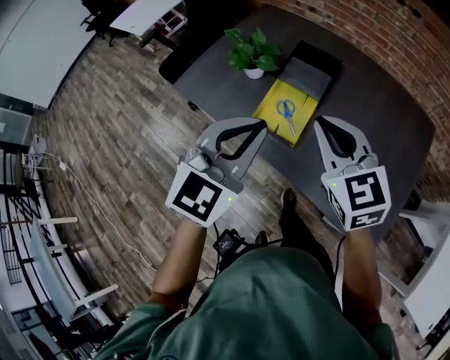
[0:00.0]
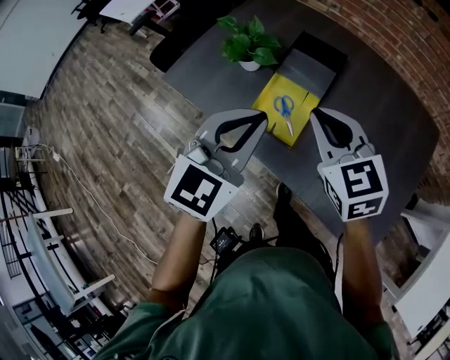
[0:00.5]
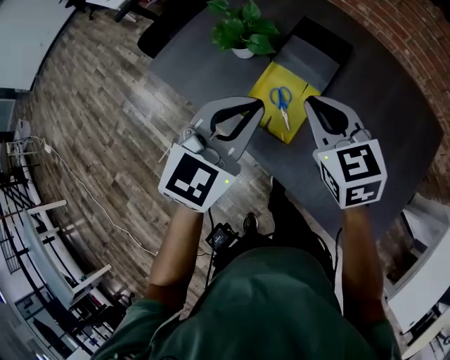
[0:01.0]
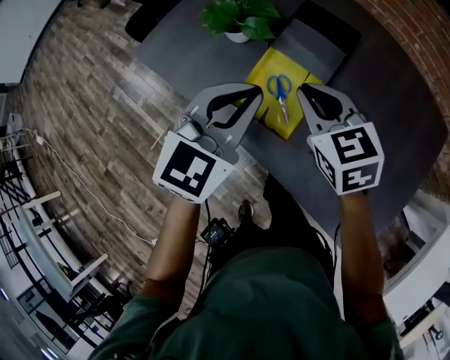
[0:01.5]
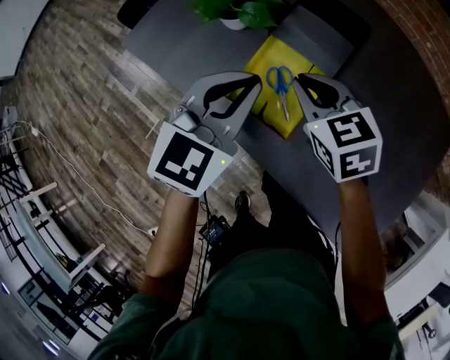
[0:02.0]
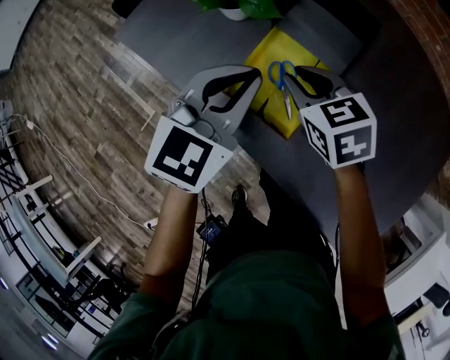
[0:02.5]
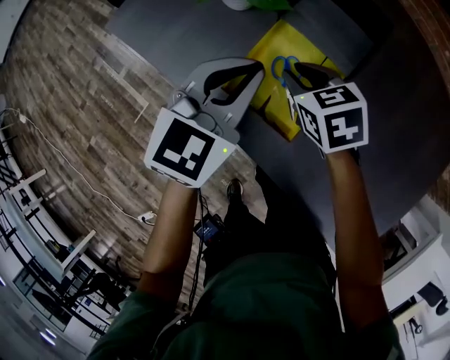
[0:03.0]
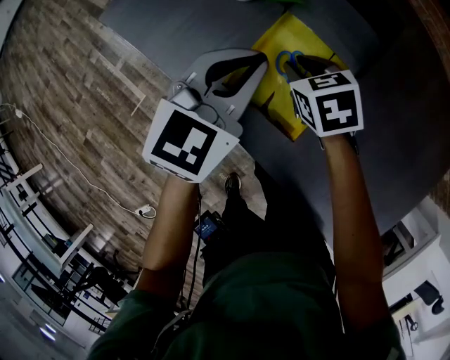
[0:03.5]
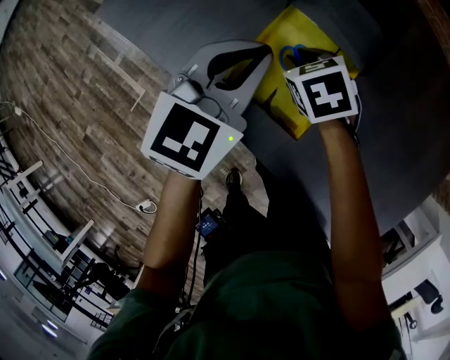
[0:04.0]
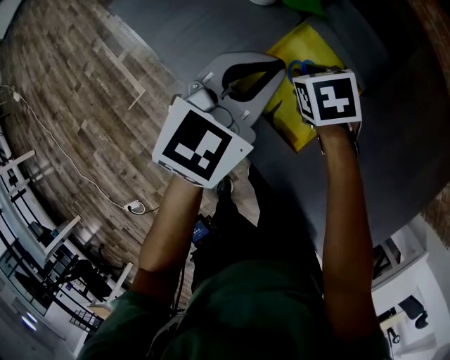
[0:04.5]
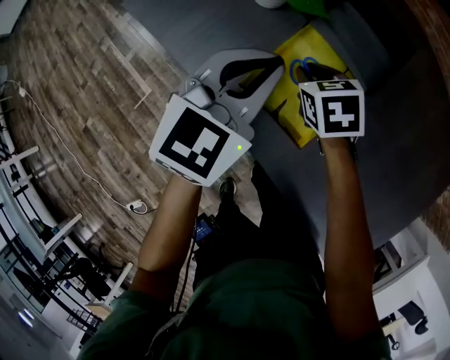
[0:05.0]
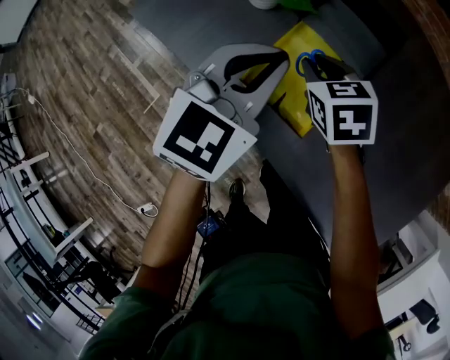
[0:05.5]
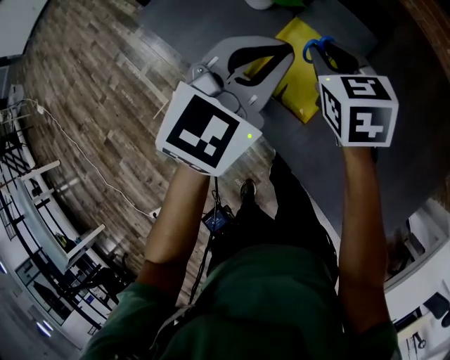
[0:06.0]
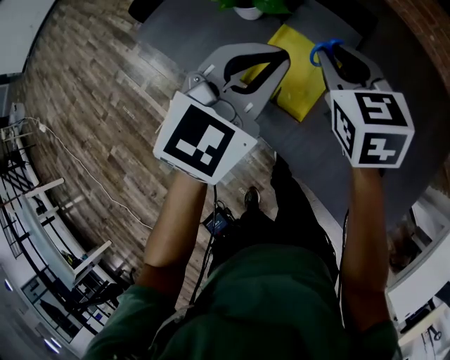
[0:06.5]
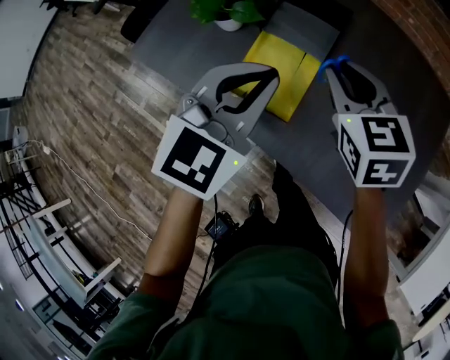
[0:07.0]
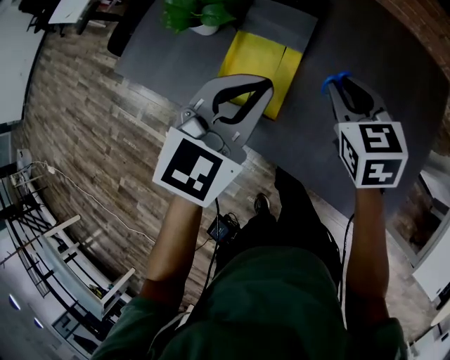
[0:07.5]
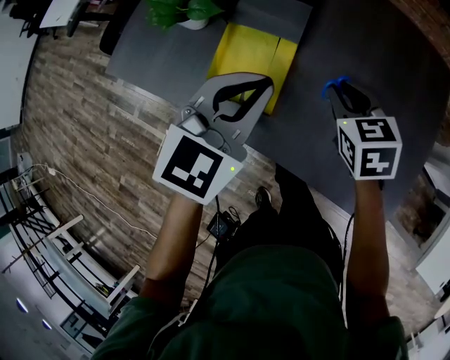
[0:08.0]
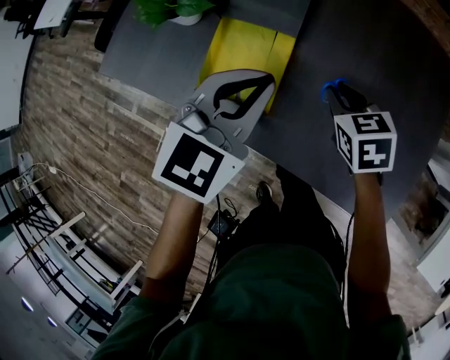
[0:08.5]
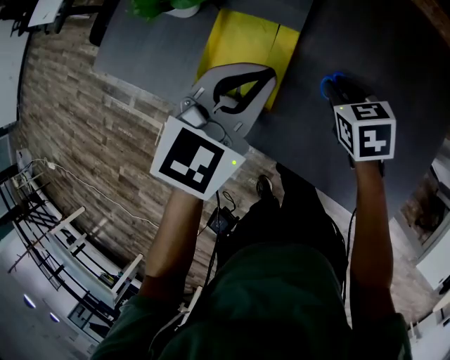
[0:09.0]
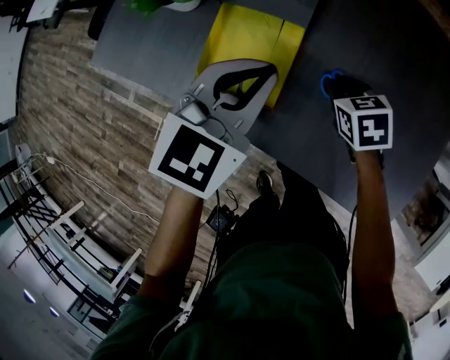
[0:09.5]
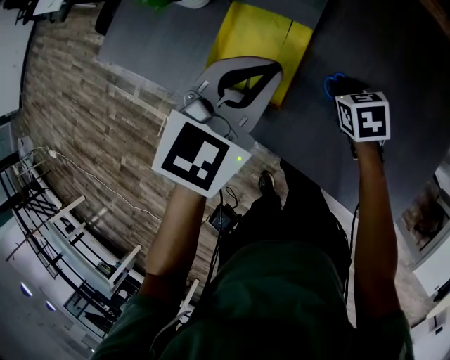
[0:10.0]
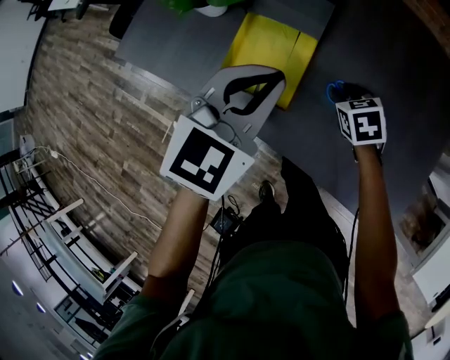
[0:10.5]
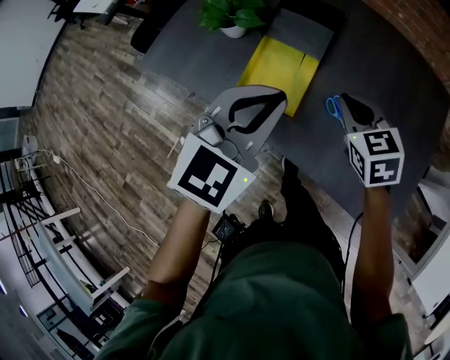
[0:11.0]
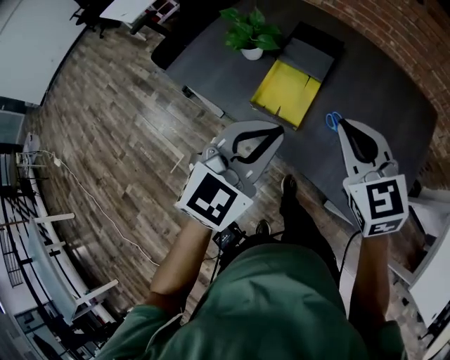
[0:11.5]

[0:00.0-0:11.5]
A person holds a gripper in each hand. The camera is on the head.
0:00.0 to 0:02.0: Both grippers move downward and forward, some 25 cm. The right gripper rotates roughly 20 degrees.
0:02.0 to 0:04.0: The right gripper shifts approximately 15 cm downward, and swivels approximately 20 degrees, while the left gripper is displaced downward by about 10 cm.
0:04.0 to 0:06.0: The right gripper travels upward by approximately 15 cm, and rotates some 20 degrees. The left gripper goes some 10 cm upward.
0:06.0 to 0:07.5: The left gripper goes approximately 10 cm to the right, while the right gripper heads to the right, covering about 20 cm.
0:07.5 to 0:09.5: The left gripper heads downward, covering approximately 10 cm, while the right gripper moves downward, roughly 20 cm, and rotates approximately 20 degrees.
0:09.5 to 0:11.5: The left gripper heads backward and upward, covering about 25 cm; the right gripper travels upward and backward by some 35 cm, and points its fingers some 30 degrees further upward.

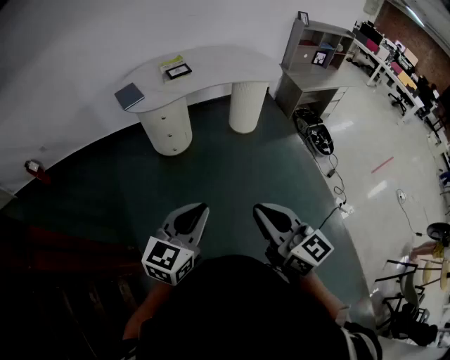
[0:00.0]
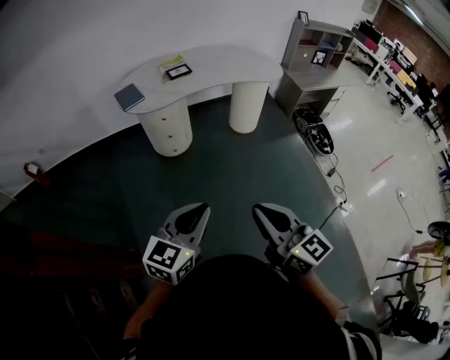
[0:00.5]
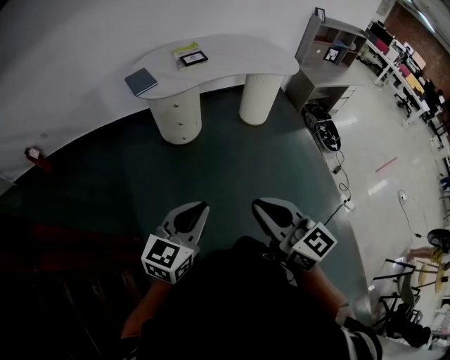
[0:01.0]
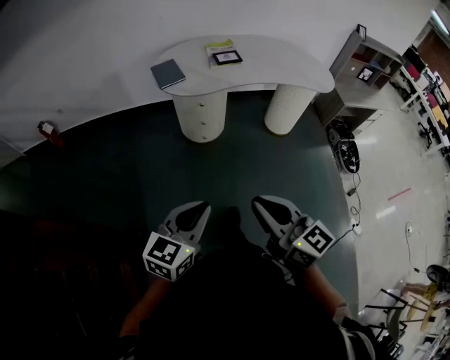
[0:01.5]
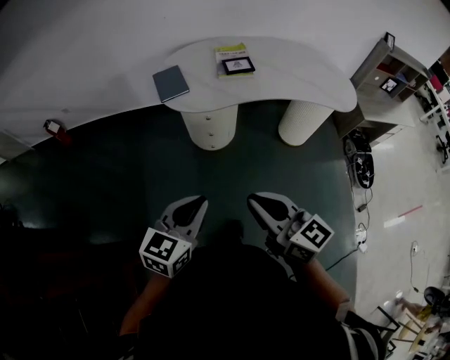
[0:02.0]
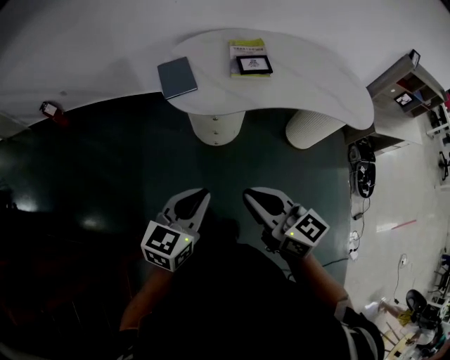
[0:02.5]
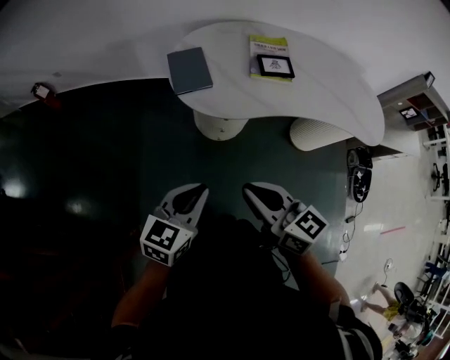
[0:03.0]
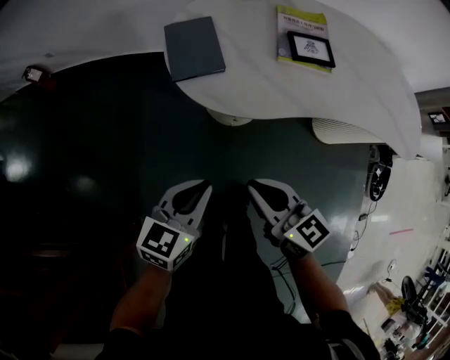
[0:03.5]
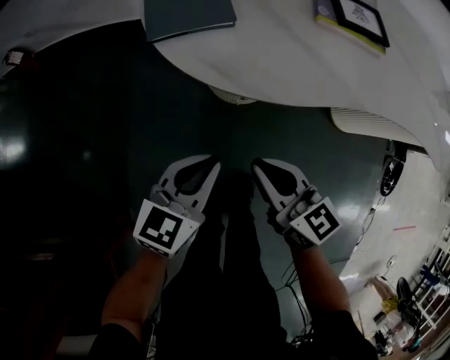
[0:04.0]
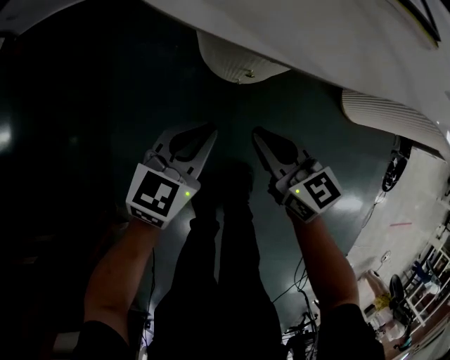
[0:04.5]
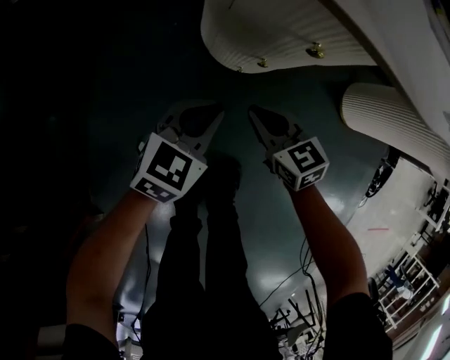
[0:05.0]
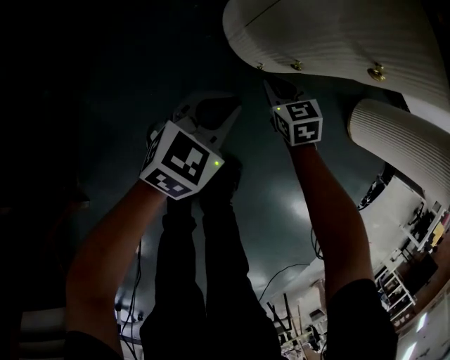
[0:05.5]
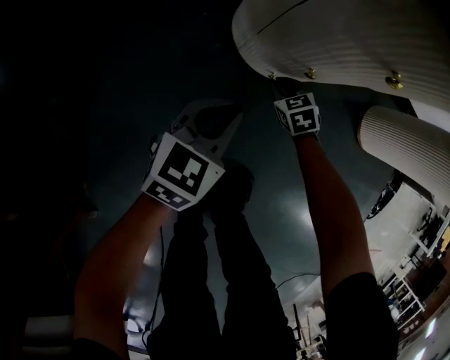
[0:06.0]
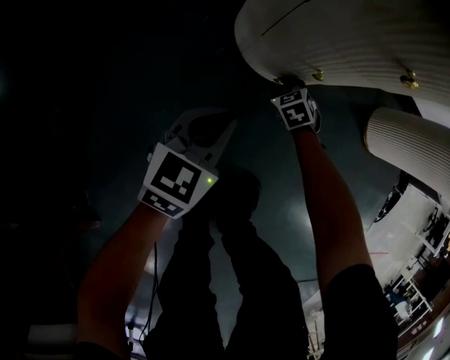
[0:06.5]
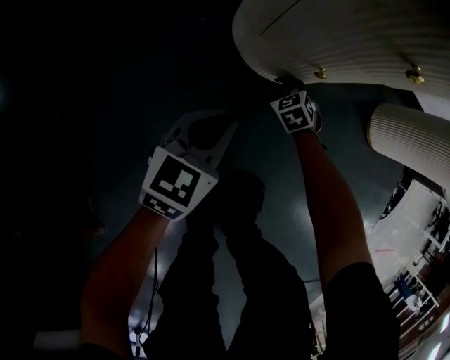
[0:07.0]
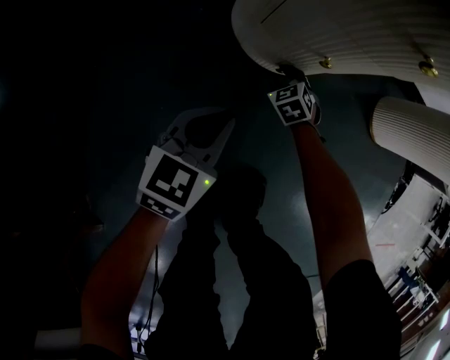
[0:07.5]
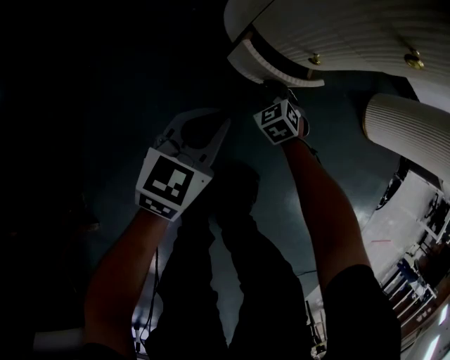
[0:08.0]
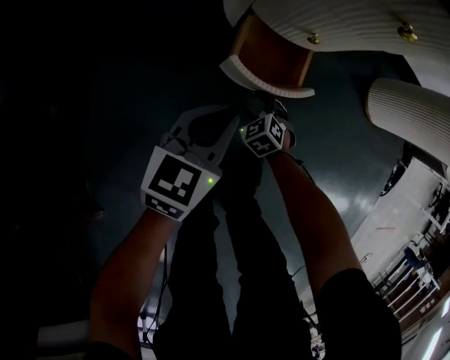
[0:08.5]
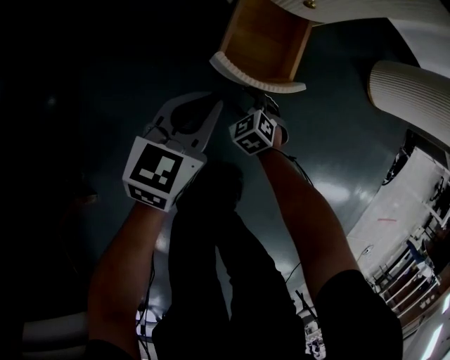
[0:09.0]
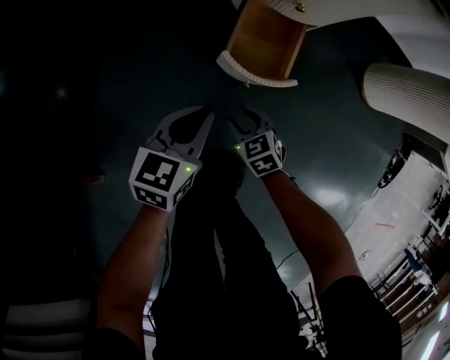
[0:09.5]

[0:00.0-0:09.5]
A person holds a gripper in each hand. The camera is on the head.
0:00.0 to 0:02.0: The left gripper shifts about 30 cm forward and to the left. The right gripper moves forward, approximately 30 cm, and changes its angle by approximately 20 degrees.
0:02.0 to 0:04.0: The two grippers go about 50 cm downward and forward.
0:04.0 to 0:05.5: The two grippers go about 40 cm downward. The right gripper angles its fingers downward, by some 30 degrees.
0:05.5 to 0:07.5: The left gripper travels downward by some 5 cm; the right gripper moves downward, some 15 cm, changes its angle by roughly 20 degrees, and opens up.
0:07.5 to 0:09.5: The right gripper shifts roughly 35 cm backward and upward, and turns by approximately 20 degrees; the left gripper heads backward and upward, covering some 20 cm.

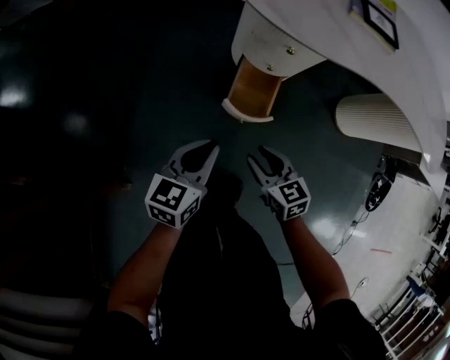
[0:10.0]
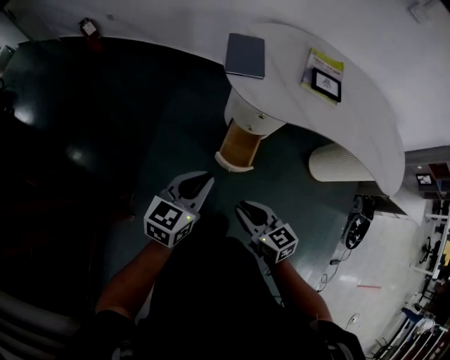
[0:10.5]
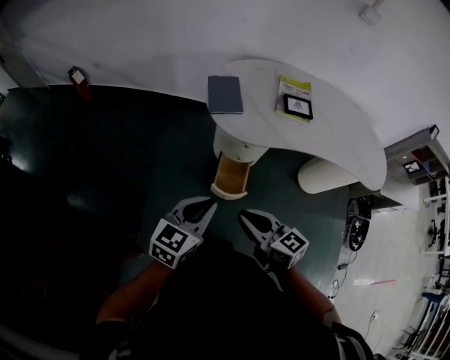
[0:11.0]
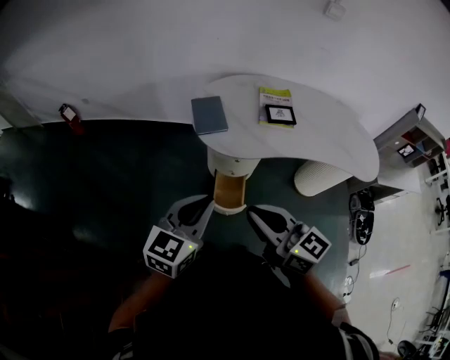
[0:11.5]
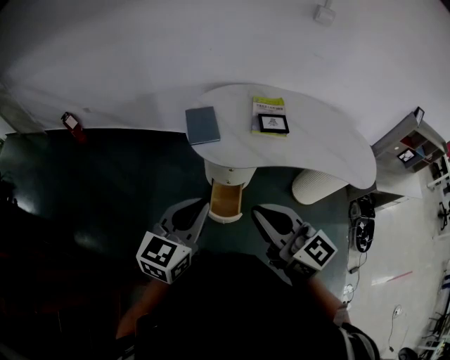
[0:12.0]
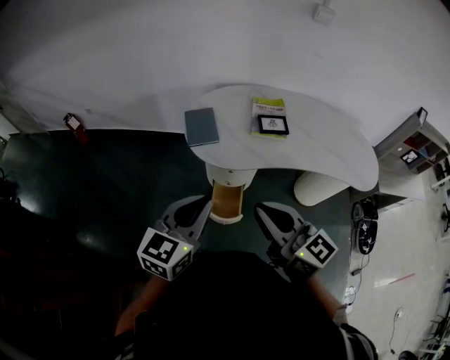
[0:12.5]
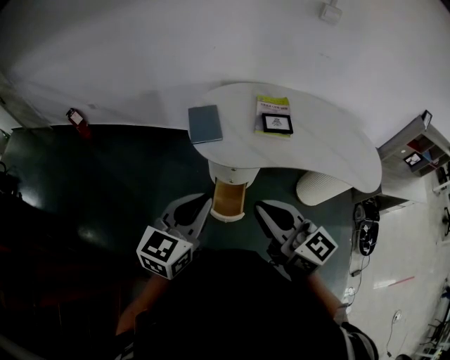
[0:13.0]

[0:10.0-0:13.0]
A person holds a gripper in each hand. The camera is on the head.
0:10.0 to 0:11.5: Both grippers move upward, roughly 50 cm. The left gripper changes its angle by about 20 degrees, while the right gripper points its fingers some 30 degrees further upward, and closes up.
0:11.5 to 0:13.0: Both grippers travel together to the right, some 5 cm.

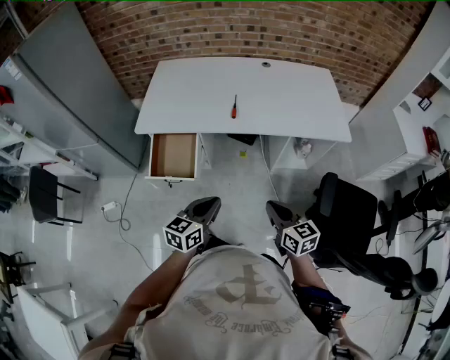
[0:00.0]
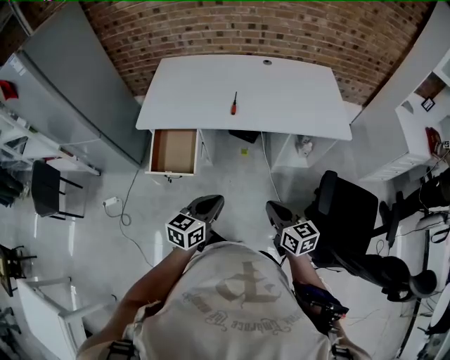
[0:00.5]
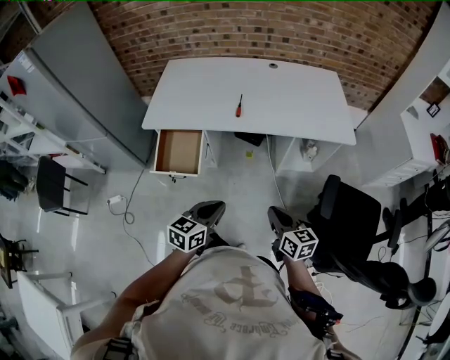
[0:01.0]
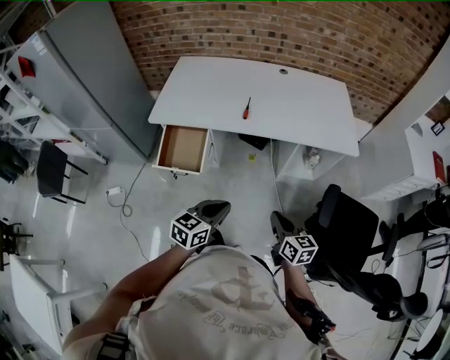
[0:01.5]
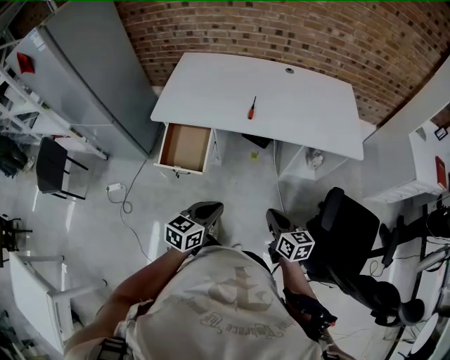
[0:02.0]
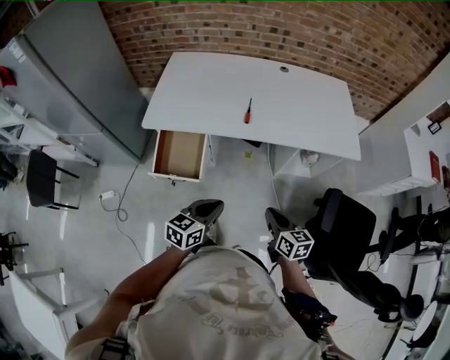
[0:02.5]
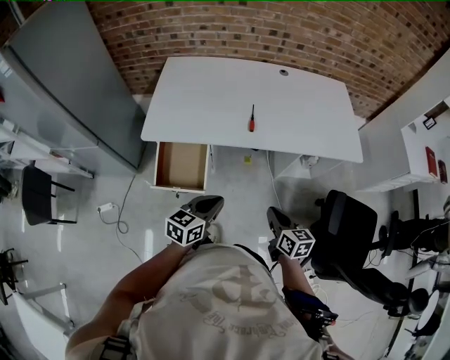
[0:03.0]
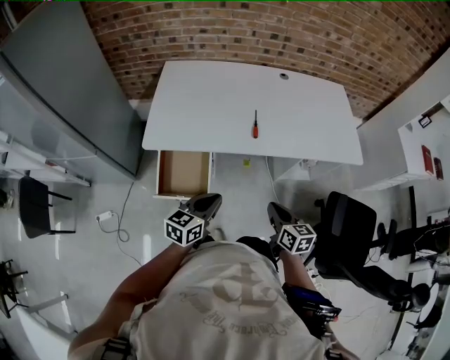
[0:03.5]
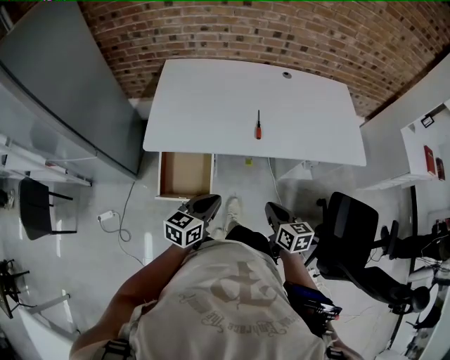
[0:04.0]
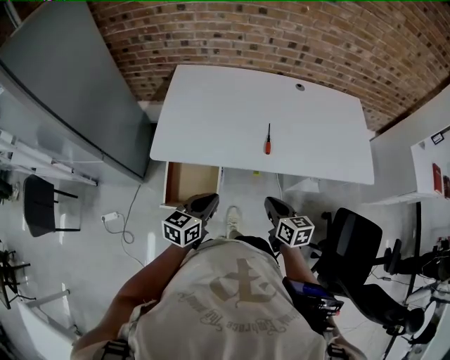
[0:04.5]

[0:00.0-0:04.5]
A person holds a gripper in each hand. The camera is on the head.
0:02.0 to 0:04.5: The grippers both shift forward and to the left by about 30 cm.
